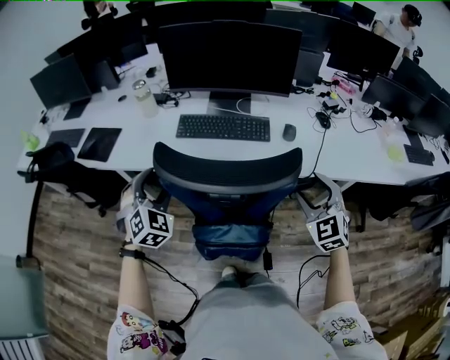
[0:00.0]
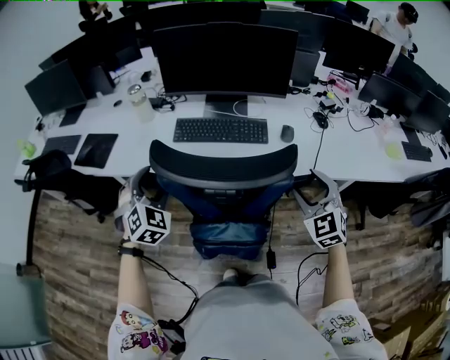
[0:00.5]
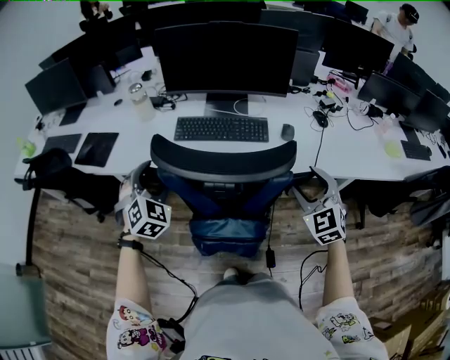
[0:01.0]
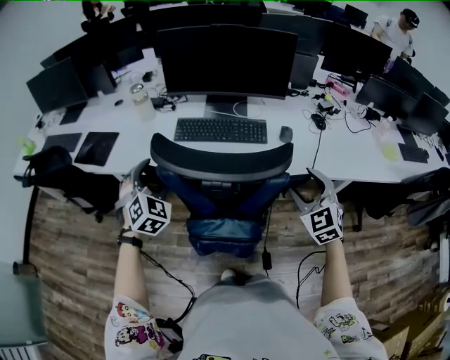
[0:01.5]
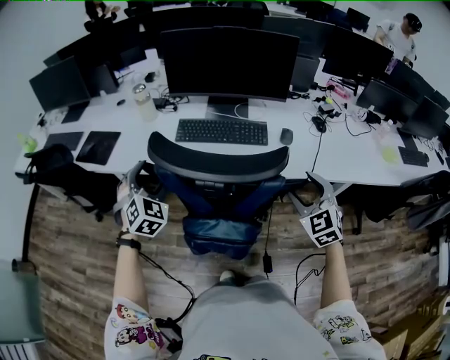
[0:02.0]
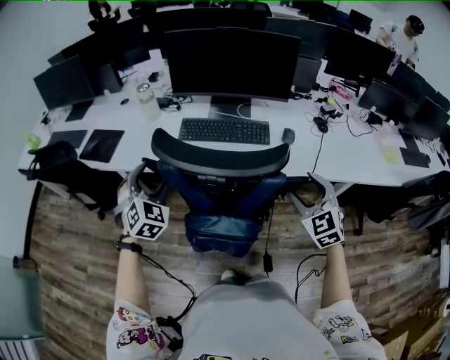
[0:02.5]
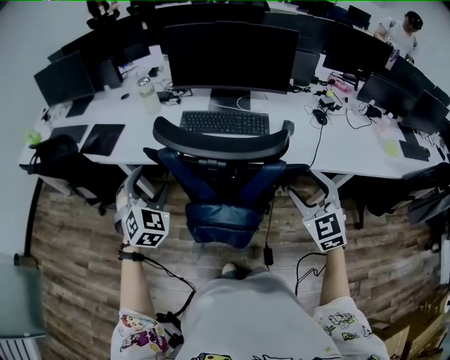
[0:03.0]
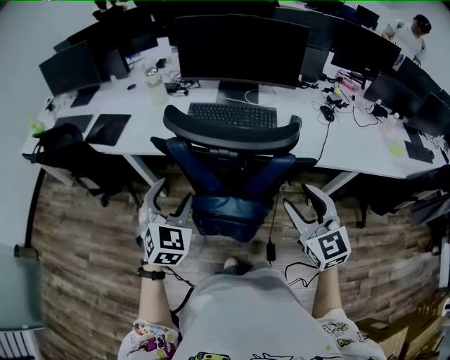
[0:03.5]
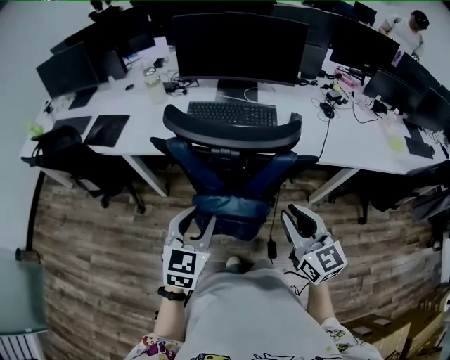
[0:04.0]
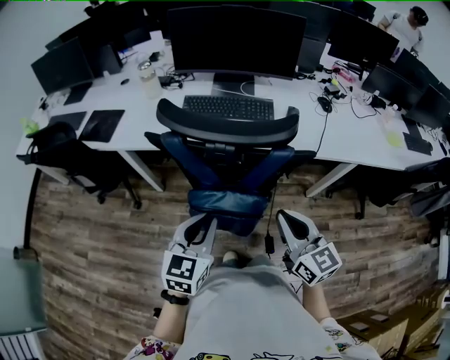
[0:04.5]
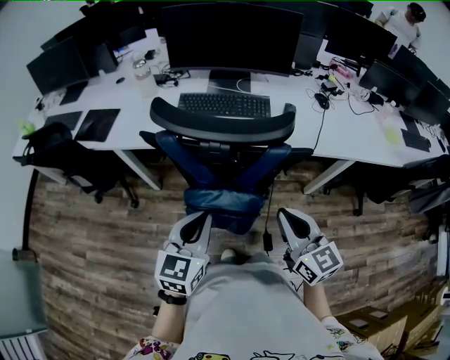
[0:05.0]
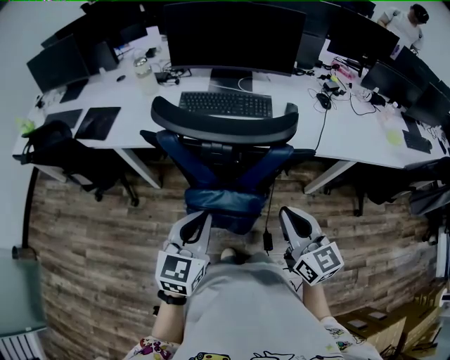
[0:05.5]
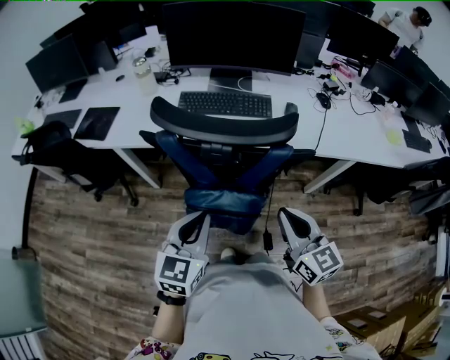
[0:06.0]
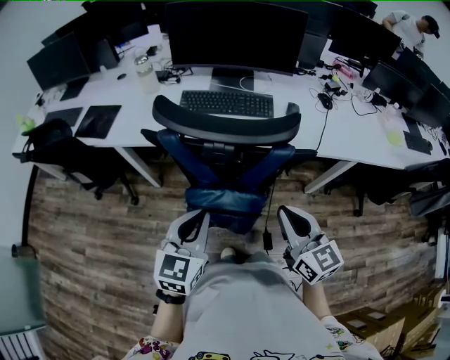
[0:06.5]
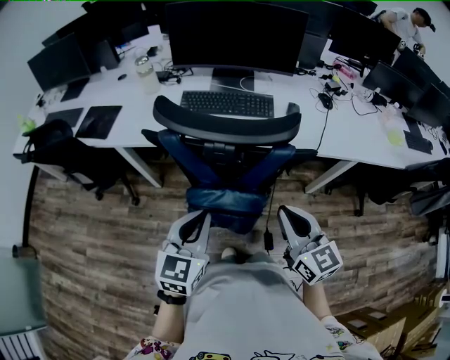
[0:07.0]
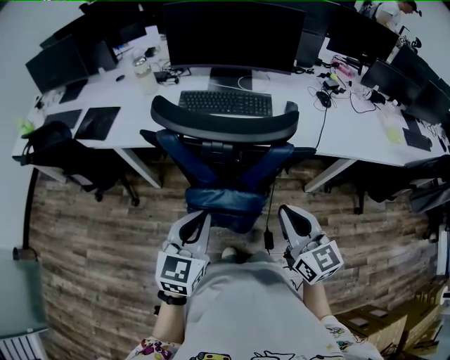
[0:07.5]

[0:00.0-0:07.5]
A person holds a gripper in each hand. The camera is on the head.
0.0 to 2.0 s: The grippers stay close to where they were, moving slightly.
2.0 to 4.0 s: The right gripper moves backward and to the left, some 15 cm, swivels some 40 degrees, and closes. Meanwhile the left gripper goes about 20 cm backward and to the right, rotates about 40 degrees, and closes its fingers.
4.0 to 5.5 s: The left gripper closes.
5.5 to 7.5 s: Both grippers stay about where they are.

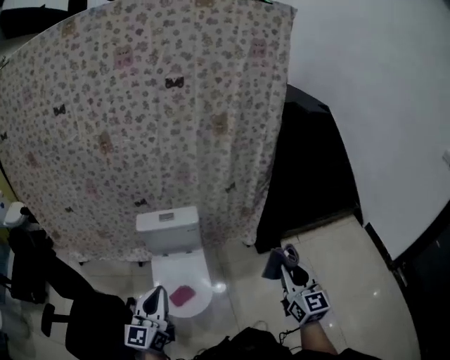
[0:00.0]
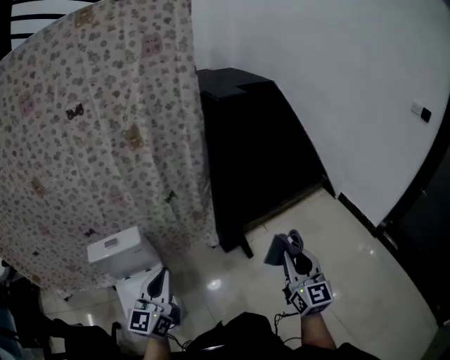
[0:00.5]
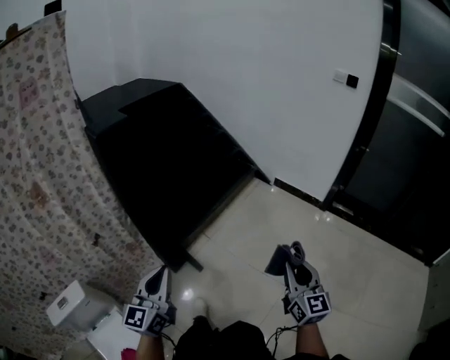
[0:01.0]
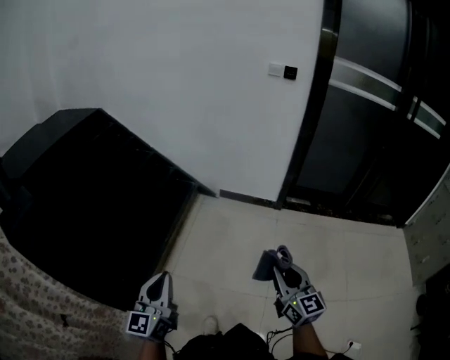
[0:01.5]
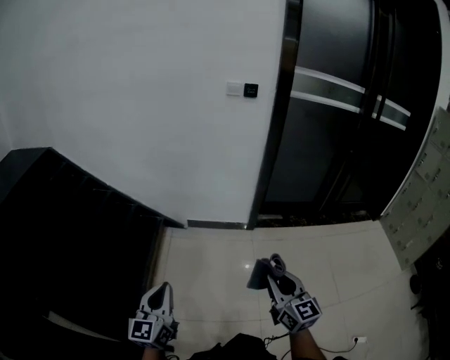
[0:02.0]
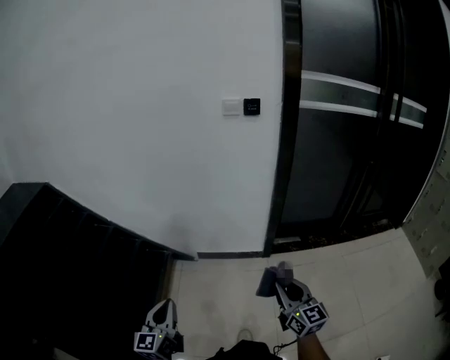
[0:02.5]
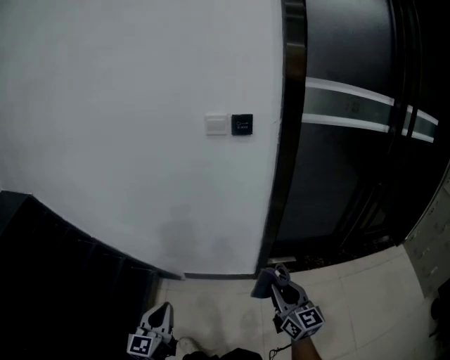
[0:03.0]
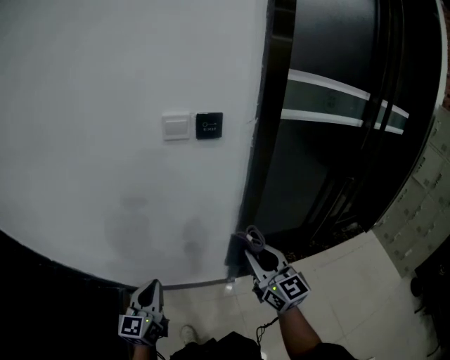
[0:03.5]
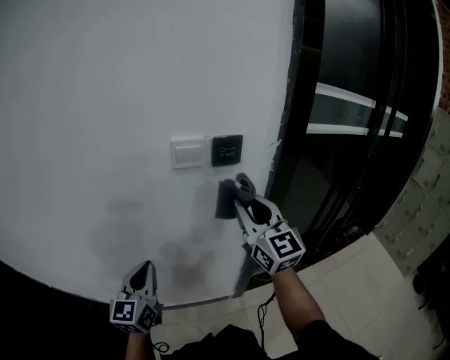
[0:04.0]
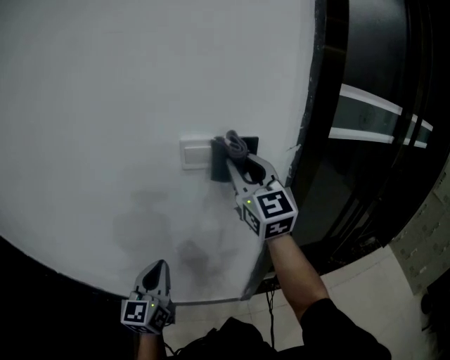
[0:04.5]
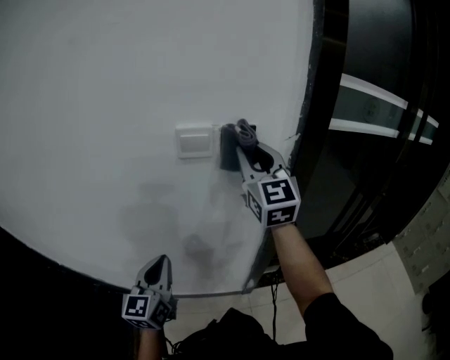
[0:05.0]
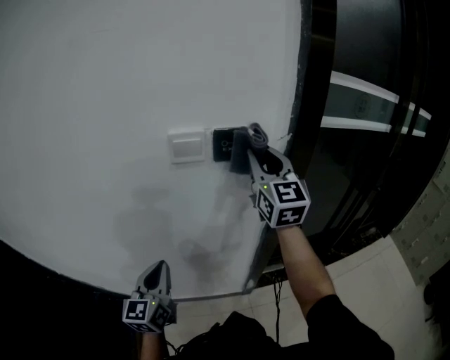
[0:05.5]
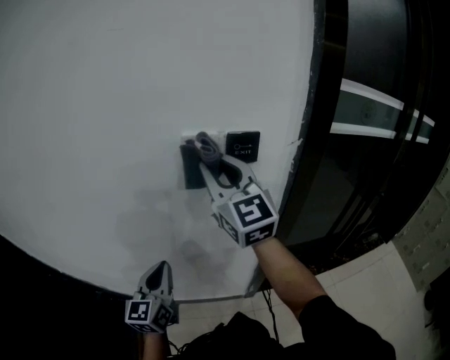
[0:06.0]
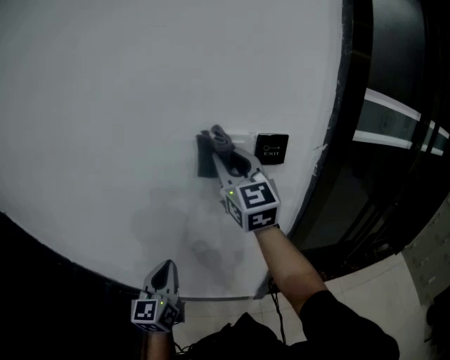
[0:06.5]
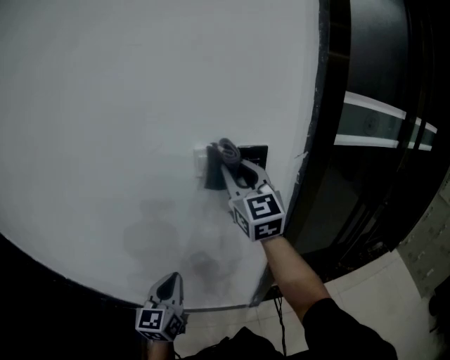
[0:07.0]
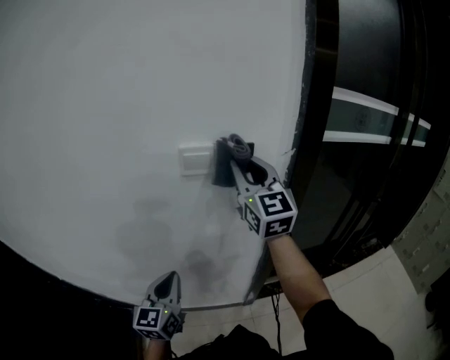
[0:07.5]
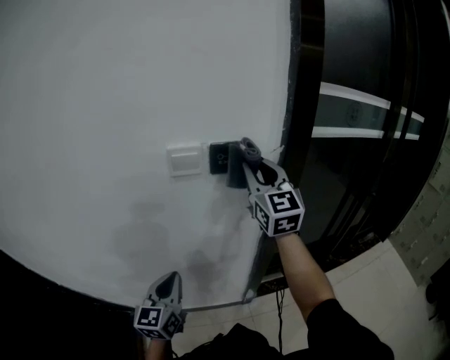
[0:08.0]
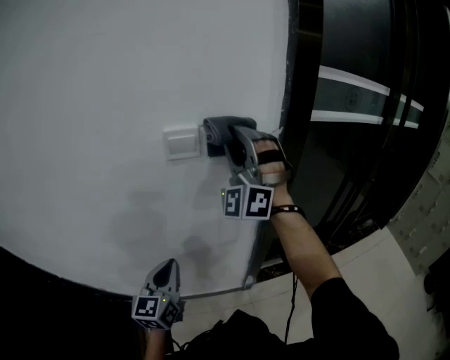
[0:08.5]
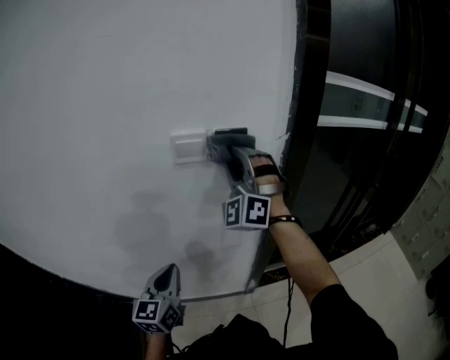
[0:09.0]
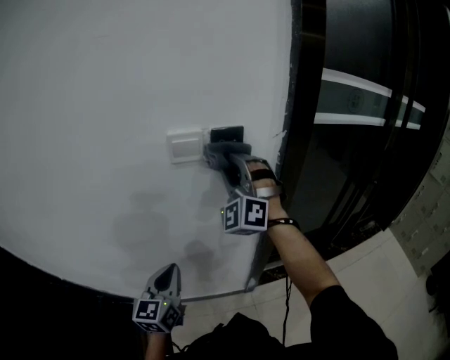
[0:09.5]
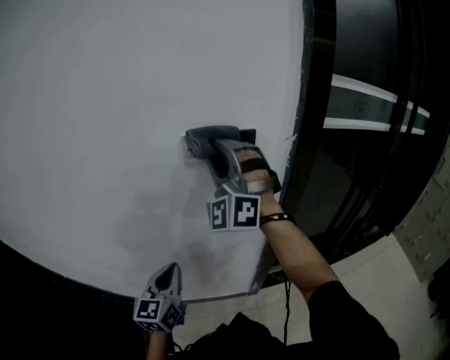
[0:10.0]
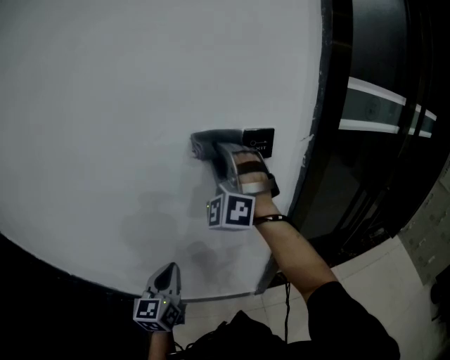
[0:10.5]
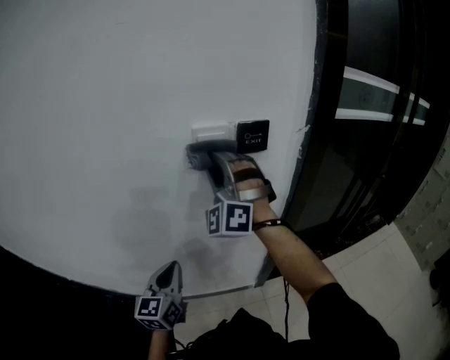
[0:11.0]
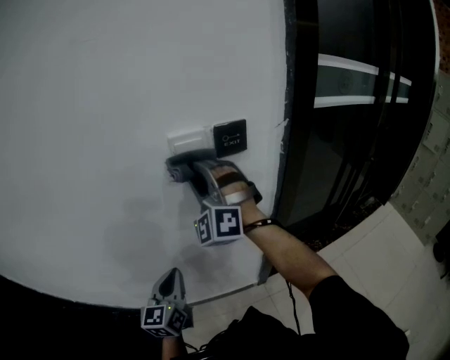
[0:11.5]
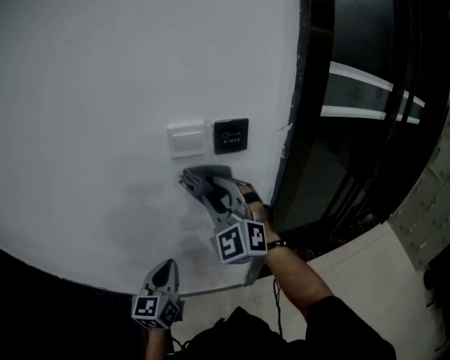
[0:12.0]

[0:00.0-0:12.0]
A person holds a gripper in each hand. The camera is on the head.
0.0 to 2.0 s: The pair of grippers is taken roughly 90 cm. The left gripper swivels about 80 degrees, while the right gripper swivels about 70 degrees.
2.0 to 4.0 s: The two grippers travel together, forward, about 80 cm. The right gripper rotates some 20 degrees.
4.0 to 6.0 s: The right gripper goes some 15 cm to the left, upward and forward.
6.0 to 8.0 s: The left gripper travels to the right by approximately 5 cm; the right gripper moves to the right, roughly 15 cm.
8.0 to 10.0 s: The right gripper shifts about 15 cm to the left, and twists about 60 degrees counterclockwise, seen from behind.
10.0 to 12.0 s: The right gripper heads downward, covering roughly 10 cm, and changes its angle by approximately 30 degrees.

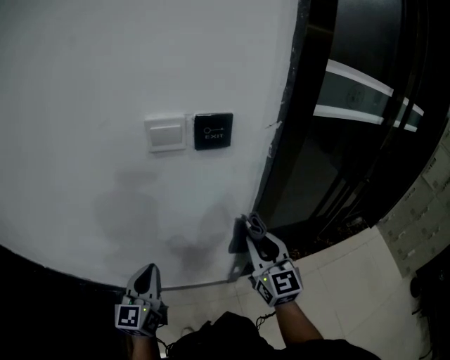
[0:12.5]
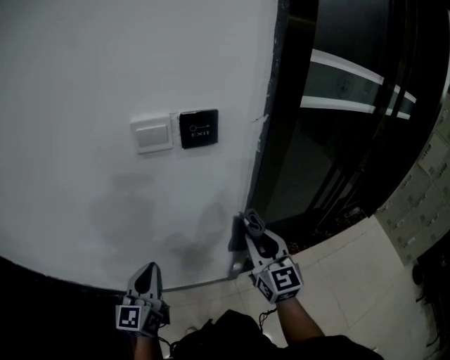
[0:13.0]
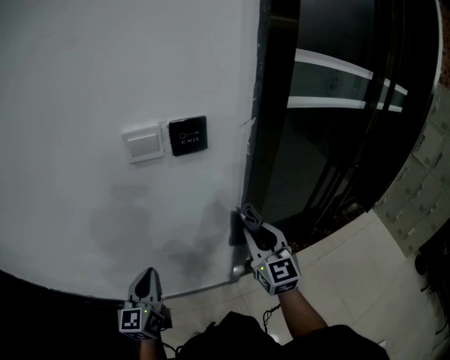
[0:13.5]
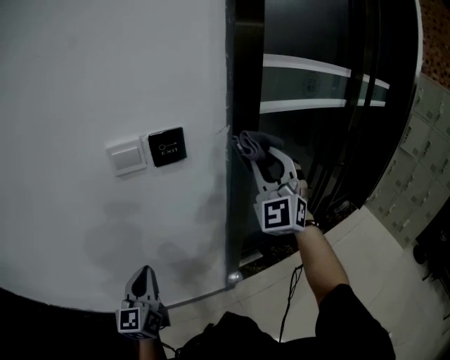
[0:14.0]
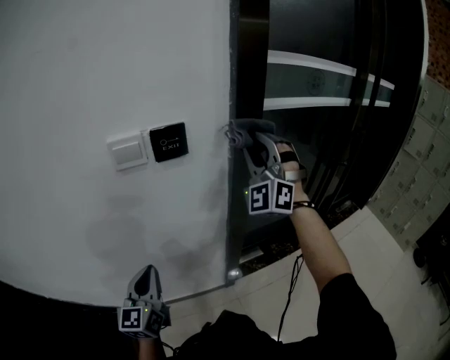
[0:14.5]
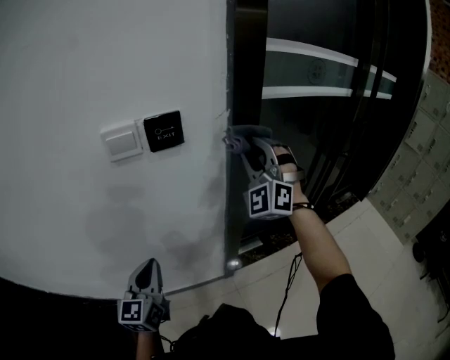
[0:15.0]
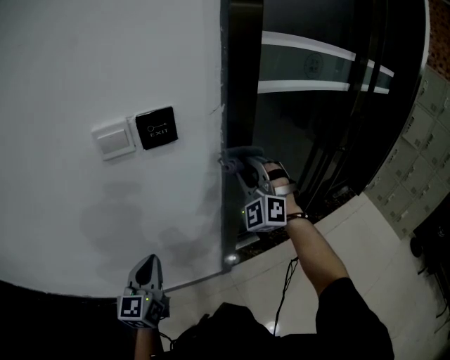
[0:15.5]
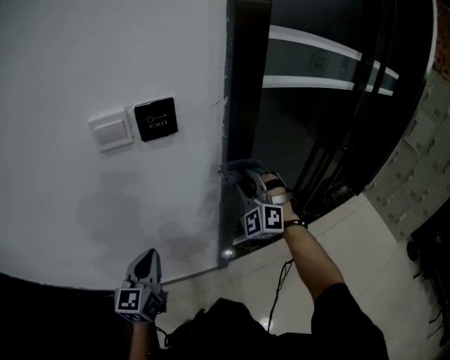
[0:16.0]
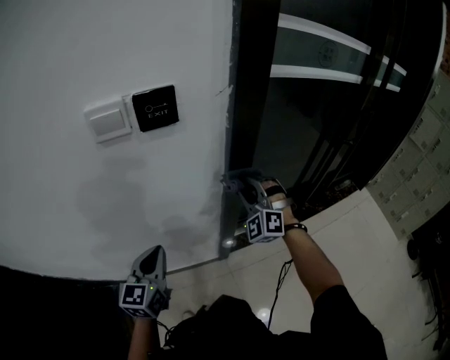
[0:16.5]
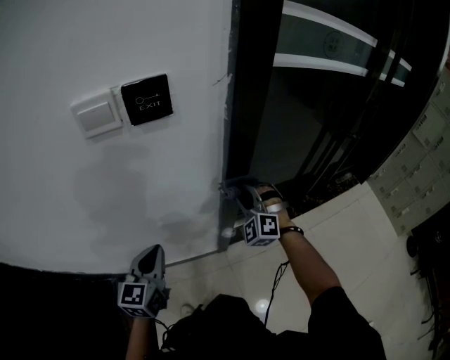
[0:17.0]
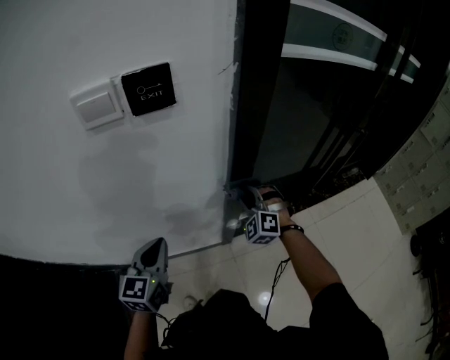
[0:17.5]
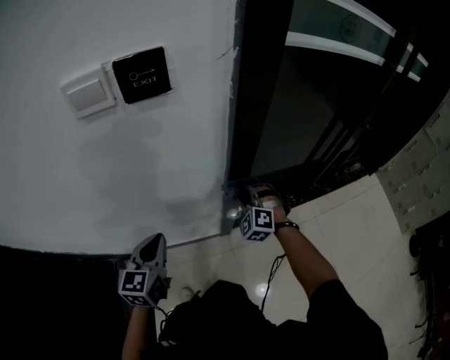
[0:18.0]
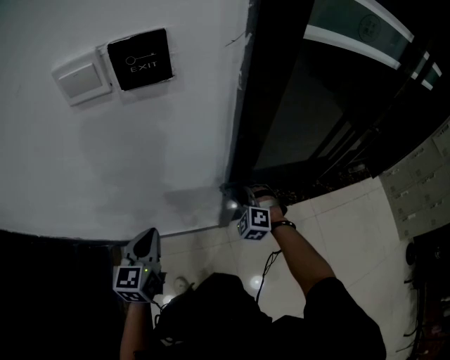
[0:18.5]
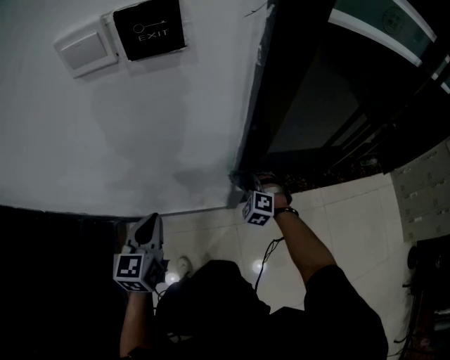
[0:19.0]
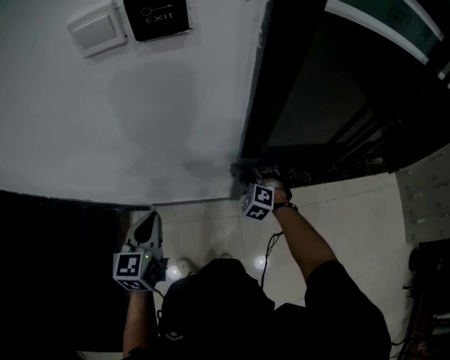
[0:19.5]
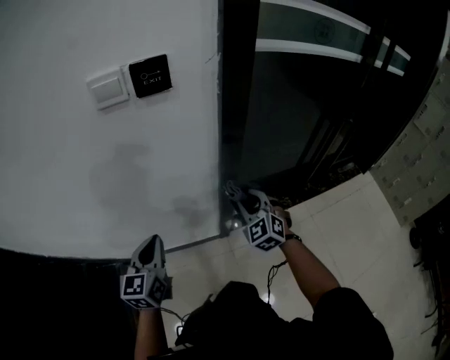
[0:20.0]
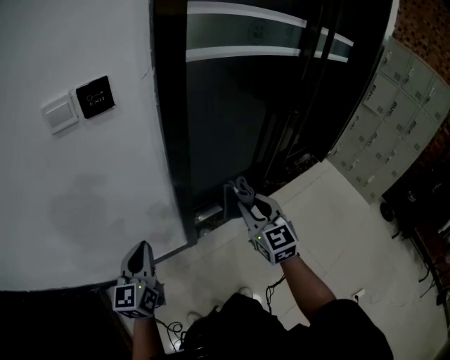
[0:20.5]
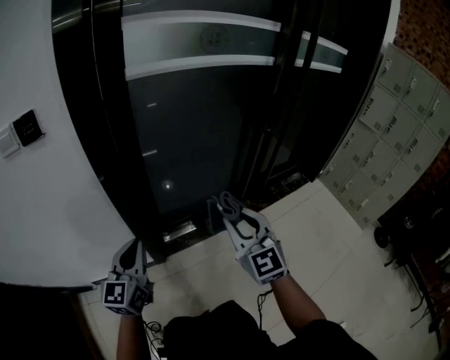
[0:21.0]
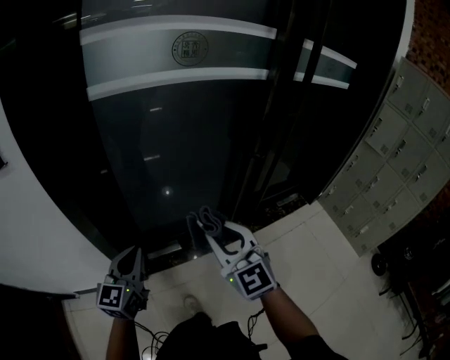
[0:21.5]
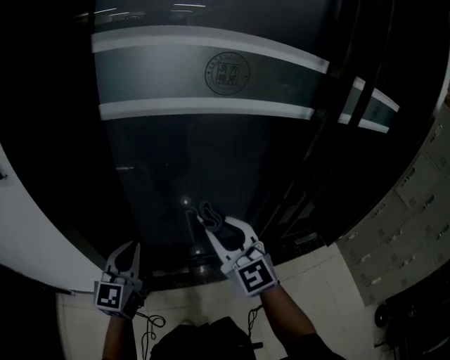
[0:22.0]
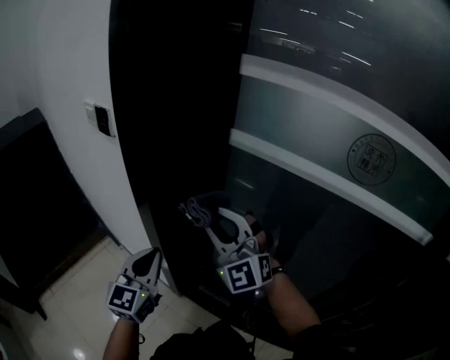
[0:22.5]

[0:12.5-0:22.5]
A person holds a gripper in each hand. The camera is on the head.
12.5 to 14.5 s: The right gripper travels upward and forward by some 25 cm, and twists approximately 70 degrees counterclockwise, seen from behind; the left gripper shifts by about 5 cm.
14.5 to 16.5 s: The right gripper heads downward, covering some 25 cm, and changes its angle by approximately 30 degrees. The left gripper moves downward and to the right, some 5 cm.
16.5 to 18.5 s: The right gripper travels downward by about 20 cm, and swivels some 30 degrees. Meanwhile the left gripper is displaced downward by roughly 5 cm.
18.5 to 20.5 s: The left gripper goes approximately 15 cm backward, to the right and upward, while the right gripper heads upward, backward and to the right, covering approximately 35 cm, and rolls clockwise, seen from behind, by about 50 degrees.
20.5 to 22.5 s: The left gripper ends up roughly 40 cm from where it was, and swivels about 50 degrees, while the right gripper shifts by about 35 cm, and turns by approximately 80 degrees.
